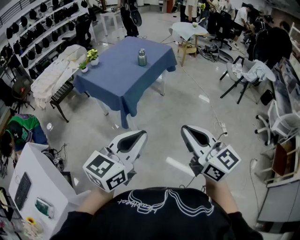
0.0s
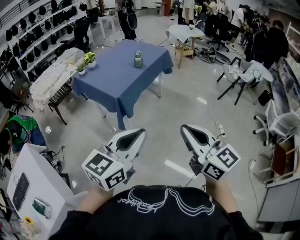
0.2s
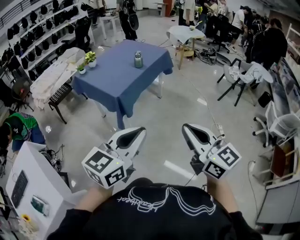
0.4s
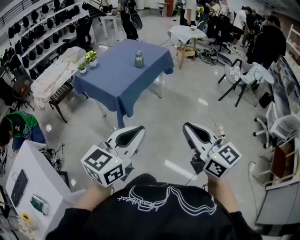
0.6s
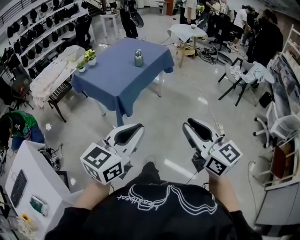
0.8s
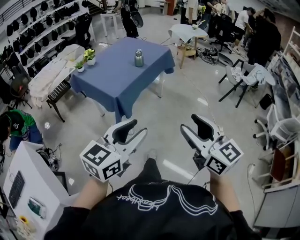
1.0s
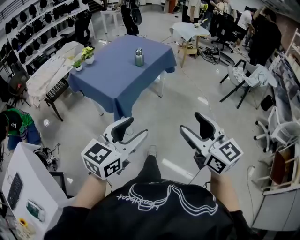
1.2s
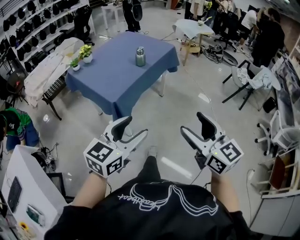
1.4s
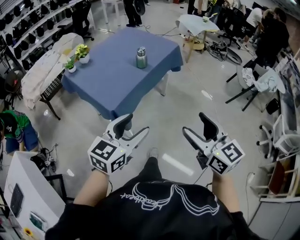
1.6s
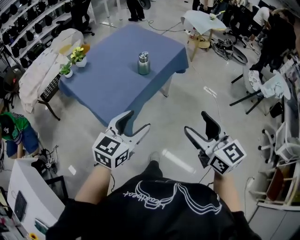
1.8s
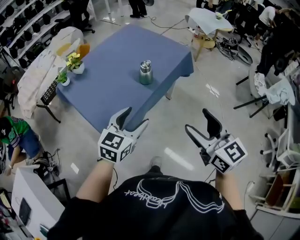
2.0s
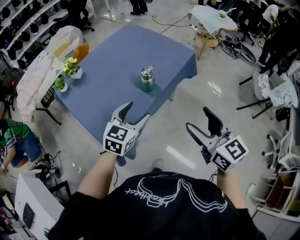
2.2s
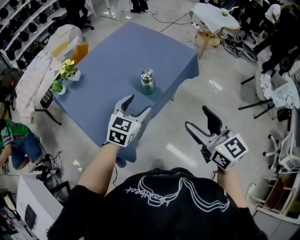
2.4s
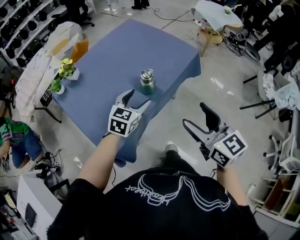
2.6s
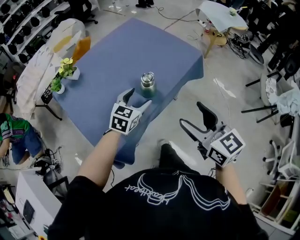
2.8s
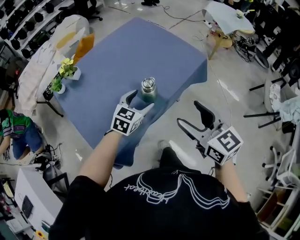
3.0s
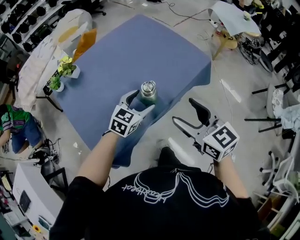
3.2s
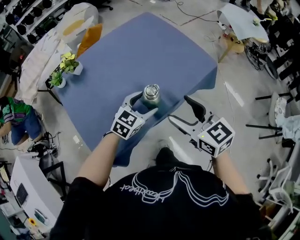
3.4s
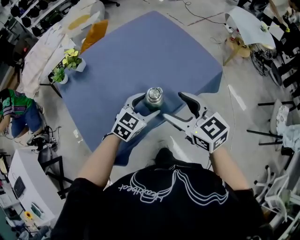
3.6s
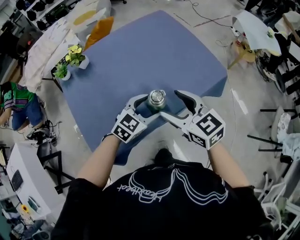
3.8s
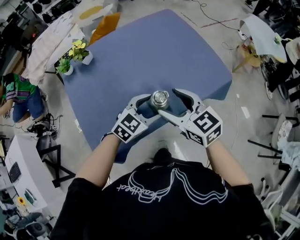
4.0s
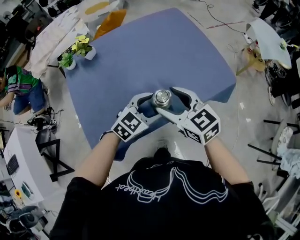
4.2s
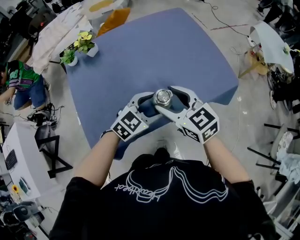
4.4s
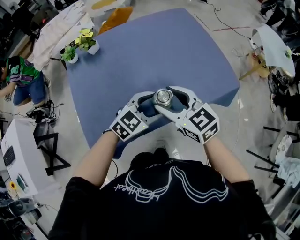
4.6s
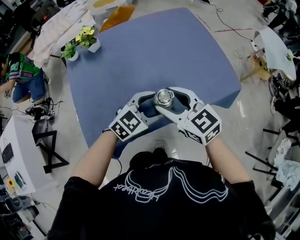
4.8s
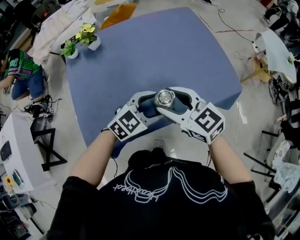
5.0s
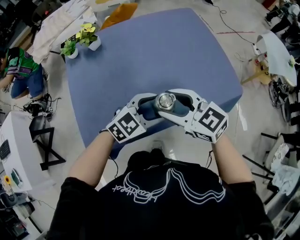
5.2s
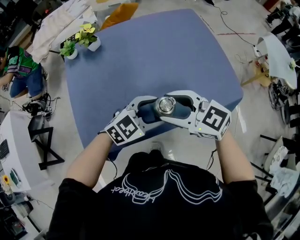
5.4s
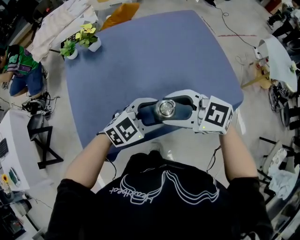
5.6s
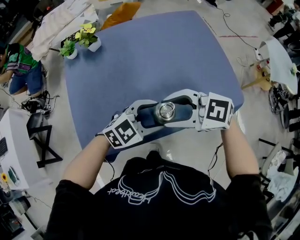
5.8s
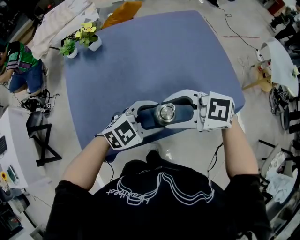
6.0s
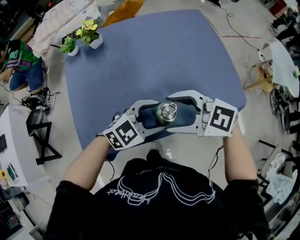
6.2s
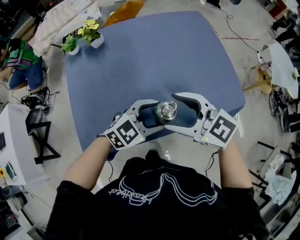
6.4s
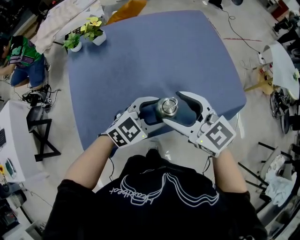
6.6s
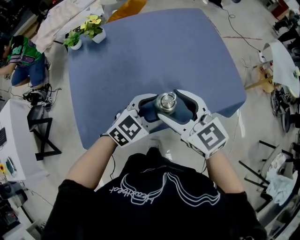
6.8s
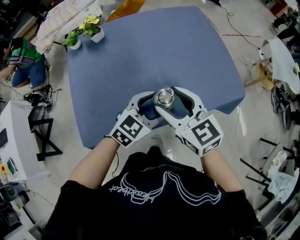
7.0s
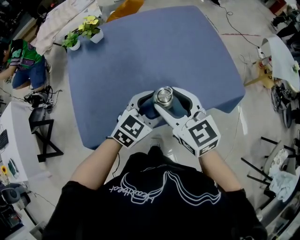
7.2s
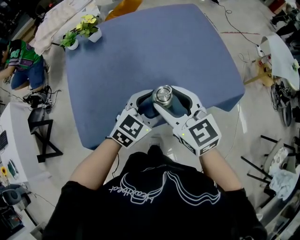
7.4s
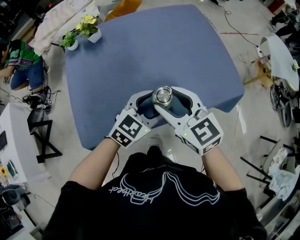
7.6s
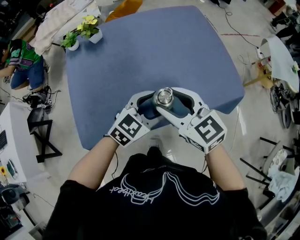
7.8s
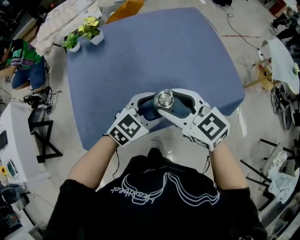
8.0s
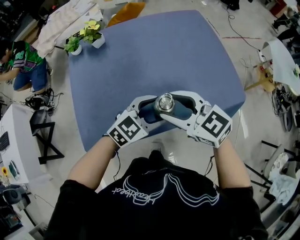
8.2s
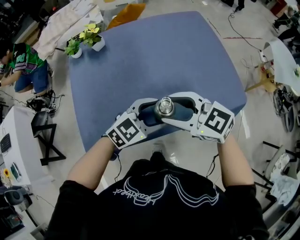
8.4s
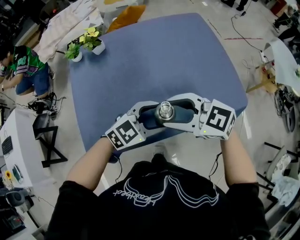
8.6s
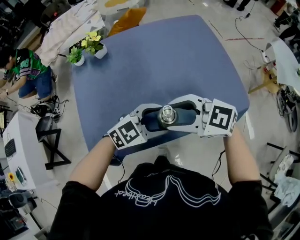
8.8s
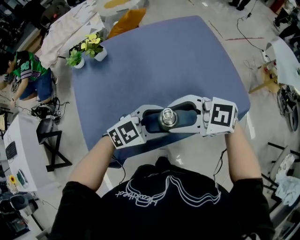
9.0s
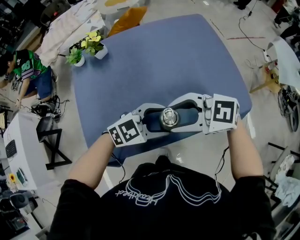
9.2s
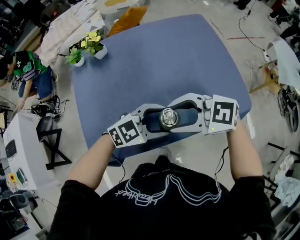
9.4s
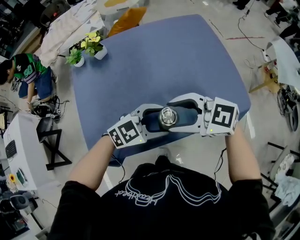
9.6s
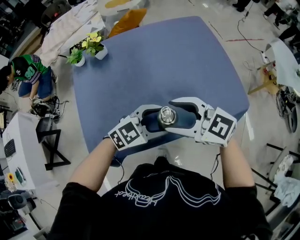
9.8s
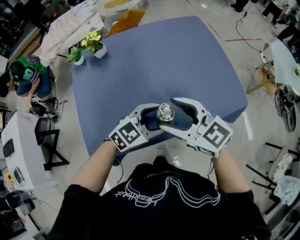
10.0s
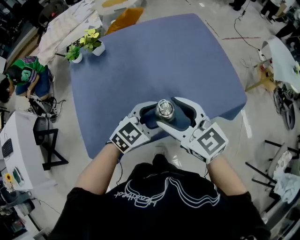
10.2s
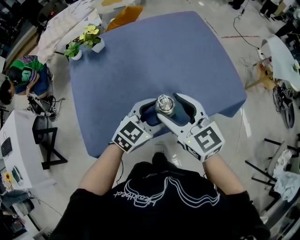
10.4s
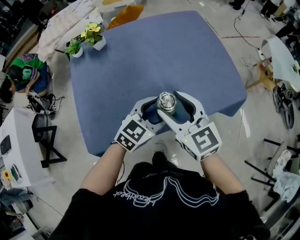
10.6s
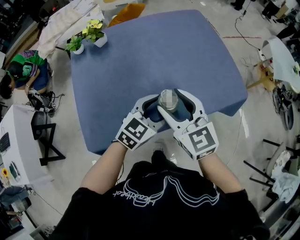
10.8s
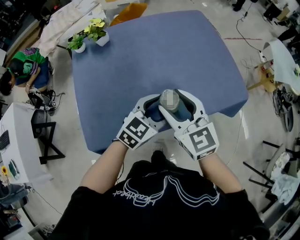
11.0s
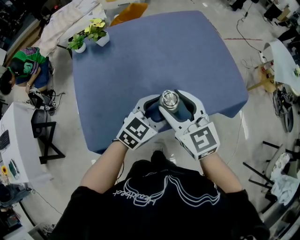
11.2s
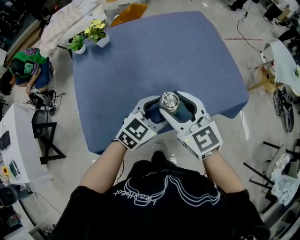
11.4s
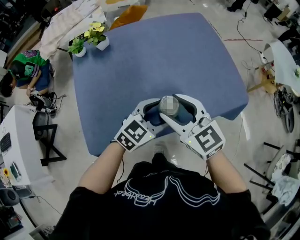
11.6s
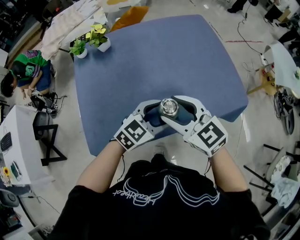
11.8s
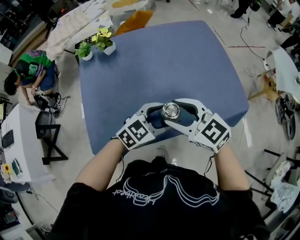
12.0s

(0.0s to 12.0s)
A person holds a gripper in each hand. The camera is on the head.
0.0s - 1.6s: The left gripper is displaced forward and downward by roughly 25 cm, and opens its fingers. Meanwhile the right gripper shifts about 25 cm forward, and opens its fingers.
1.6s - 3.0s: The two grippers go about 40 cm forward.
3.0s - 4.4s: The right gripper is displaced forward, to the left and downward by about 20 cm, and turns by some 30 degrees.
4.4s - 6.0s: The right gripper changes its angle by some 50 degrees.
6.0s - 7.6s: The right gripper rotates approximately 50 degrees.
7.6s - 9.0s: The right gripper rotates roughly 40 degrees; the left gripper turns by roughly 20 degrees.
9.0s - 10.4s: The right gripper swivels about 50 degrees. Meanwhile the left gripper rotates approximately 20 degrees.
10.4s - 12.0s: The right gripper swivels approximately 20 degrees.

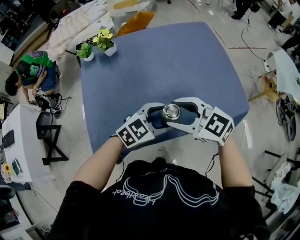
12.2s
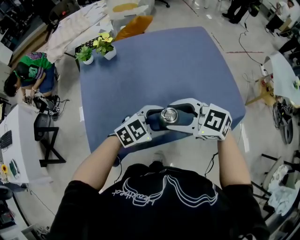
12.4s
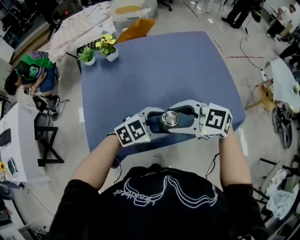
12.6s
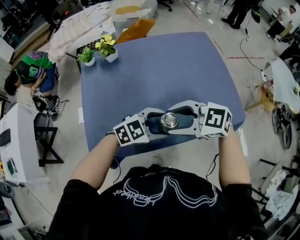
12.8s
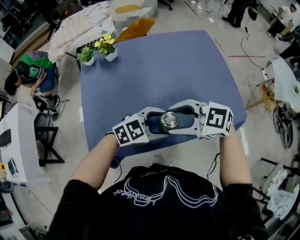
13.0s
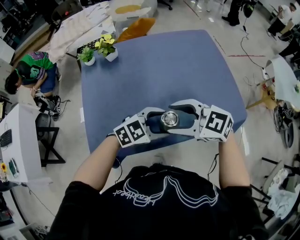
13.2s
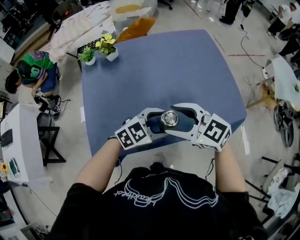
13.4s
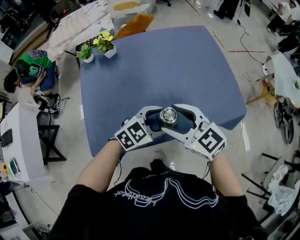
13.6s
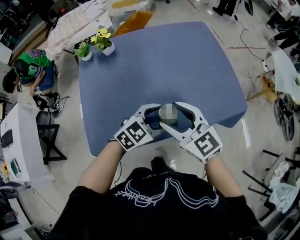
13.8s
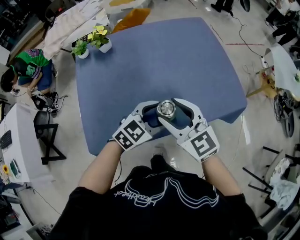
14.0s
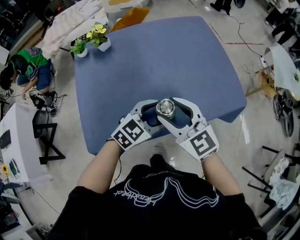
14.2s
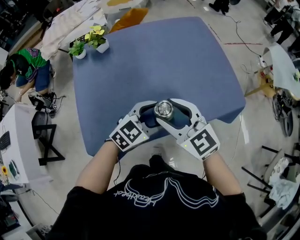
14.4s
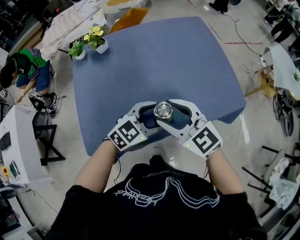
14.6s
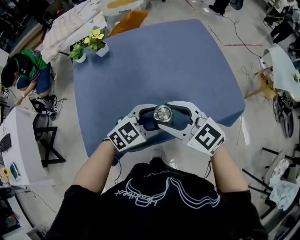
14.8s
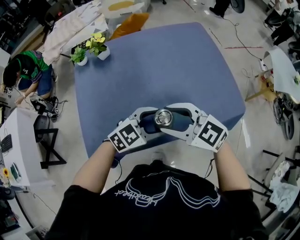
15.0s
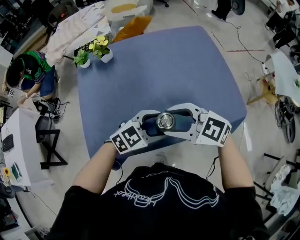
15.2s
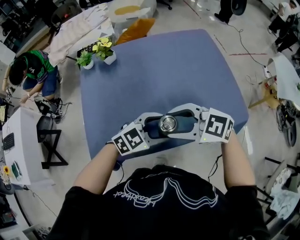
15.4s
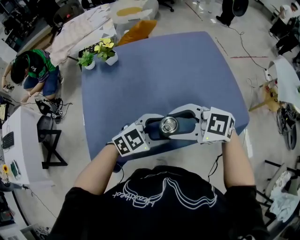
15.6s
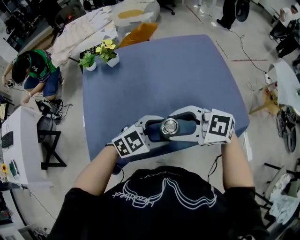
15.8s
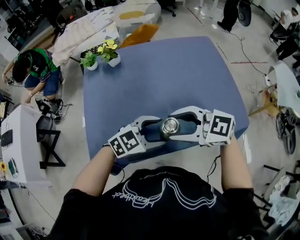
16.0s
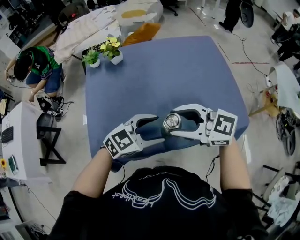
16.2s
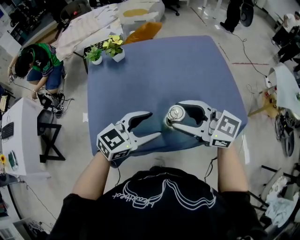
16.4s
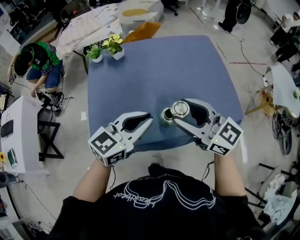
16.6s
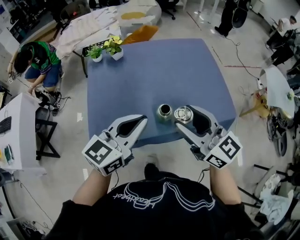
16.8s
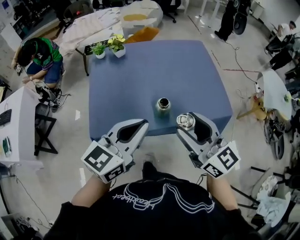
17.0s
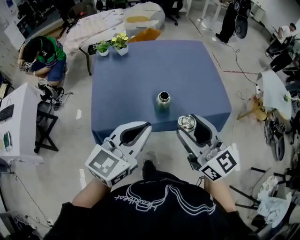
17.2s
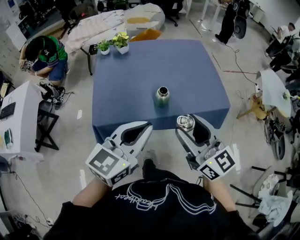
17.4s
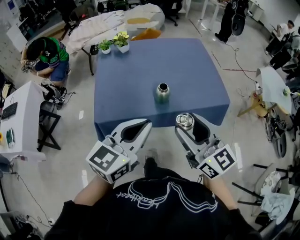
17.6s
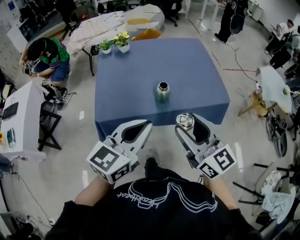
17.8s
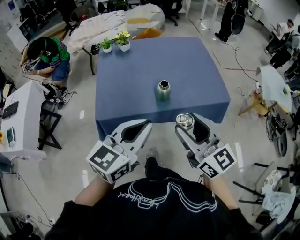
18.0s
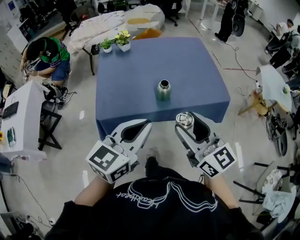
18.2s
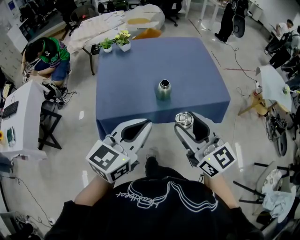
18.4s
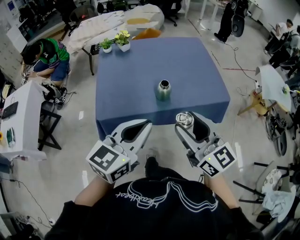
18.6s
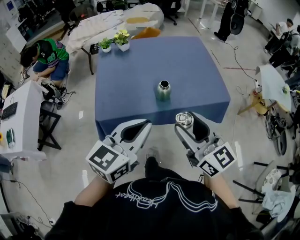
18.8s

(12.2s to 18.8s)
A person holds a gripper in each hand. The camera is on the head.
12.2s - 13.8s: The right gripper swivels roughly 20 degrees.
13.8s - 15.4s: The right gripper turns by some 40 degrees.
15.4s - 17.2s: The left gripper shifts some 20 cm upward, turns by approximately 40 degrees, and closes up. The right gripper shifts by approximately 20 cm, and rotates approximately 50 degrees.
17.2s - 18.8s: The left gripper travels backward by about 5 cm; the right gripper moves some 5 cm.

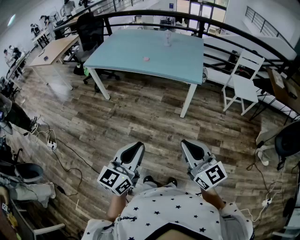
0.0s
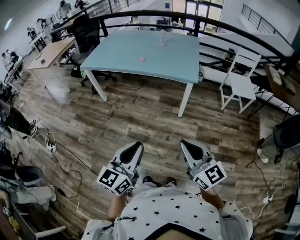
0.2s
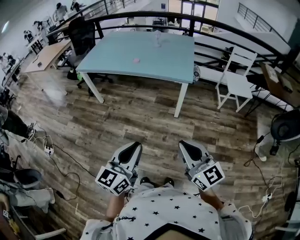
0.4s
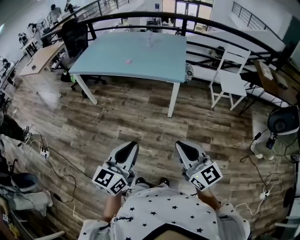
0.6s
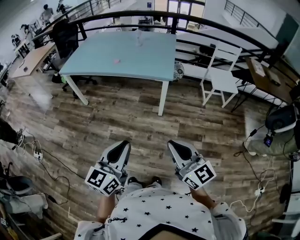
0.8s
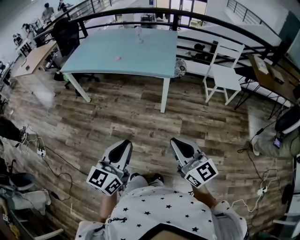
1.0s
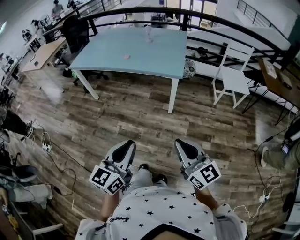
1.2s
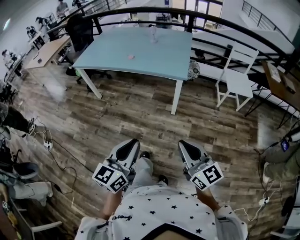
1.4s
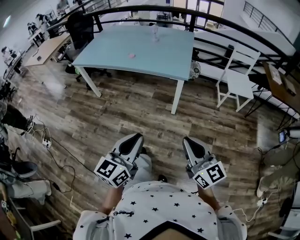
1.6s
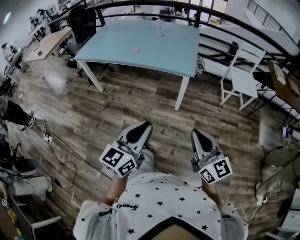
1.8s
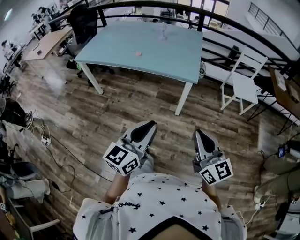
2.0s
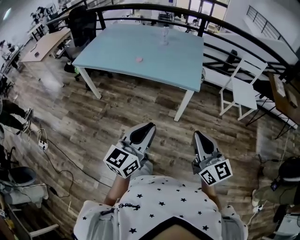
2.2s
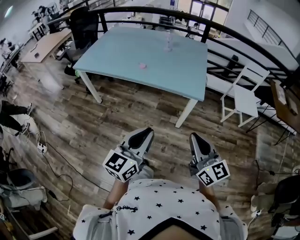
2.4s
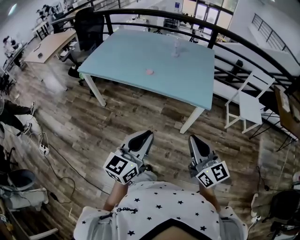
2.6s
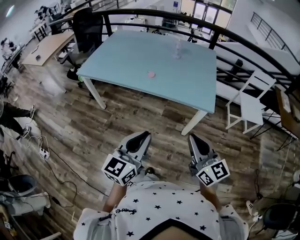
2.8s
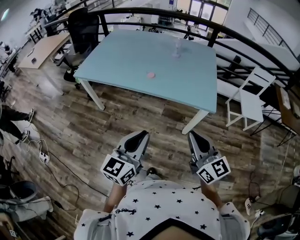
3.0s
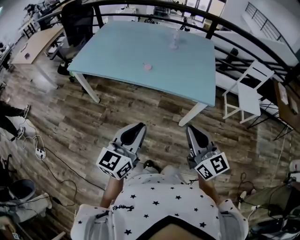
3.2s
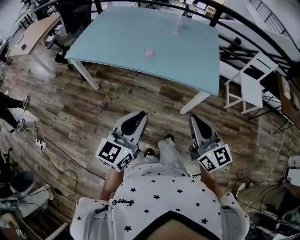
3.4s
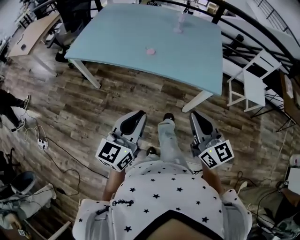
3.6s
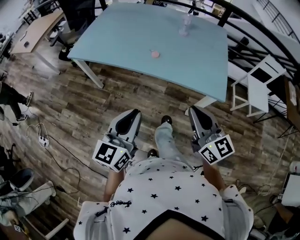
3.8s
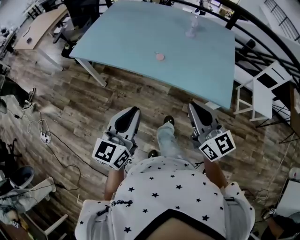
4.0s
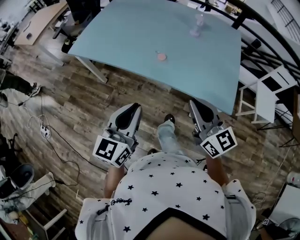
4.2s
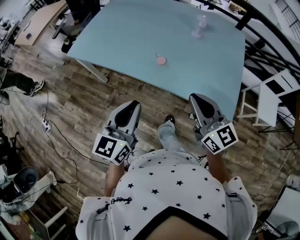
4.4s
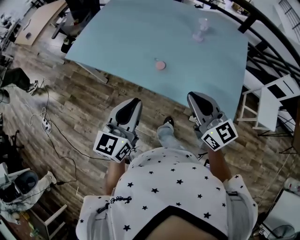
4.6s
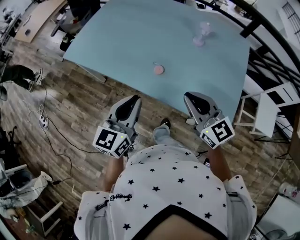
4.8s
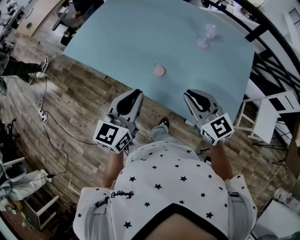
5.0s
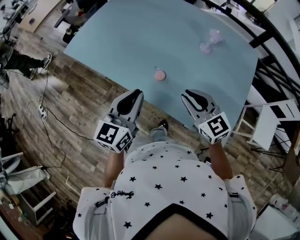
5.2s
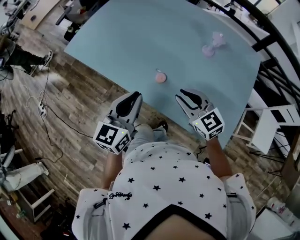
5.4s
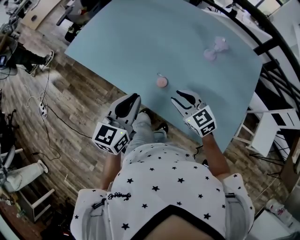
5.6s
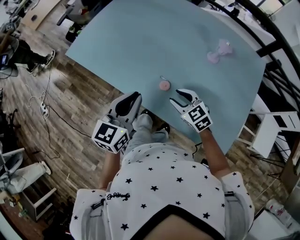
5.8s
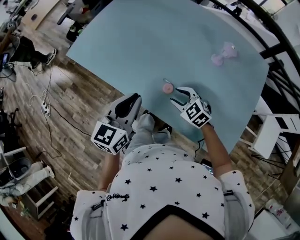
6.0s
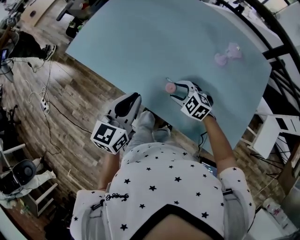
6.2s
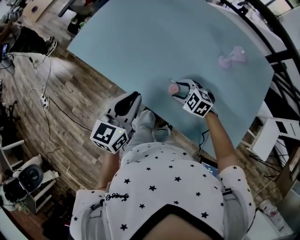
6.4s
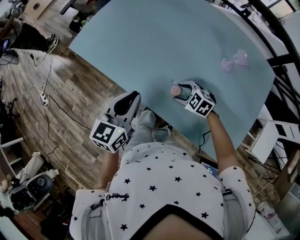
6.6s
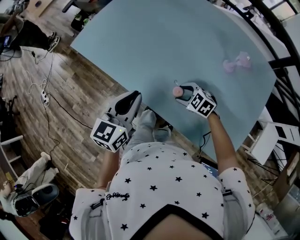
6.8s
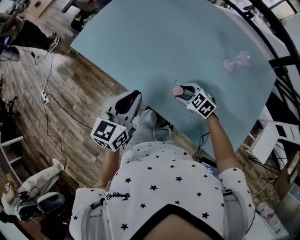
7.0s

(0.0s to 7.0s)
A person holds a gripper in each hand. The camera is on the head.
0.0s - 1.4s: The two grippers go some 10 cm to the right.
1.4s - 2.8s: Both grippers travel together forward and to the left, about 30 cm.
2.8s - 4.2s: The right gripper shifts about 20 cm forward; the left gripper travels forward and to the left by approximately 20 cm.
4.2s - 5.6s: The left gripper goes some 20 cm forward. The right gripper heads forward and downward, covering some 30 cm, swivels some 40 degrees, and opens up.
5.6s - 7.0s: The right gripper goes approximately 15 cm downward and forward, and swivels about 30 degrees, while the left gripper heads forward, covering some 10 cm.
